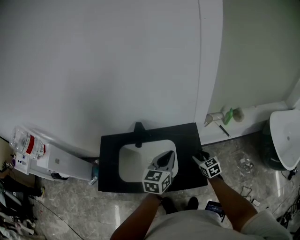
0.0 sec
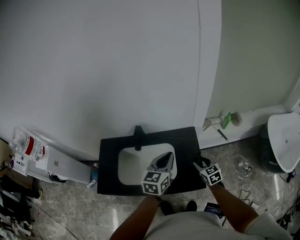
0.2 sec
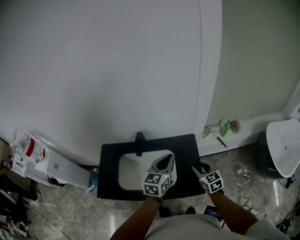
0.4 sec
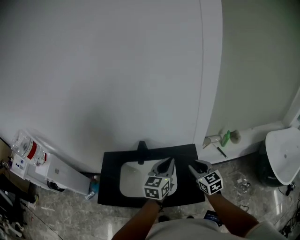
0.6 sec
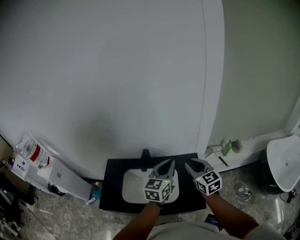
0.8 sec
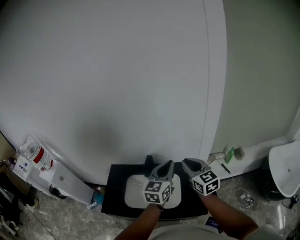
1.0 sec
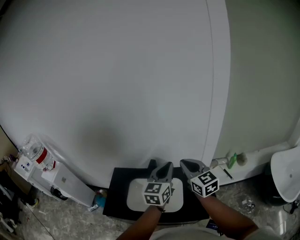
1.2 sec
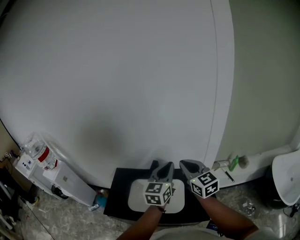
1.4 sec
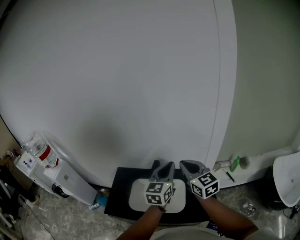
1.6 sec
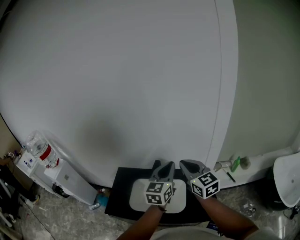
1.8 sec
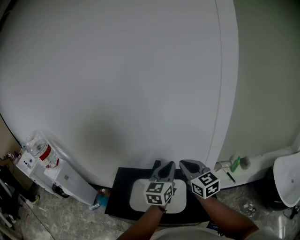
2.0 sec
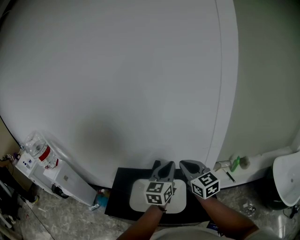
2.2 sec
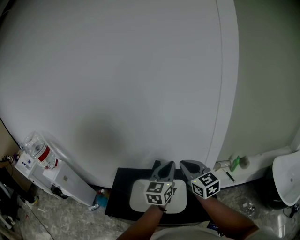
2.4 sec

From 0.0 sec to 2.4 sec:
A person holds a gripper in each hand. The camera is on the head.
From 0.0 sec to 1.2 sec: The left gripper travels upward by roughly 15 cm; the right gripper moves upward, approximately 35 cm, changes its angle by roughly 30 degrees, and closes its fingers.
From 1.2 sec to 2.4 sec: The grippers stay close to where they were, moving slightly.

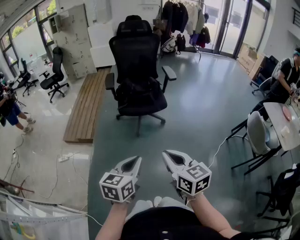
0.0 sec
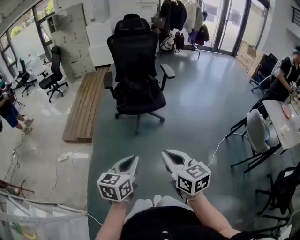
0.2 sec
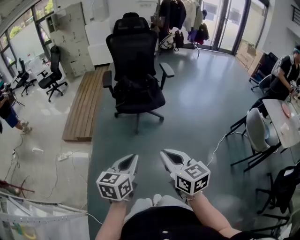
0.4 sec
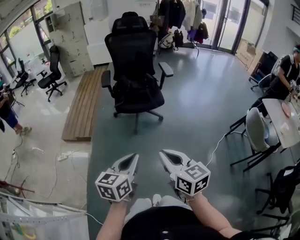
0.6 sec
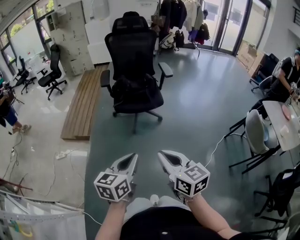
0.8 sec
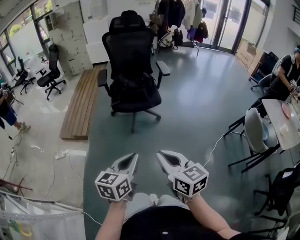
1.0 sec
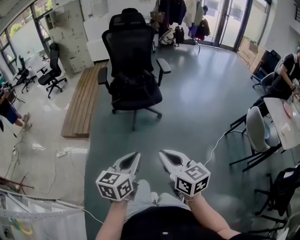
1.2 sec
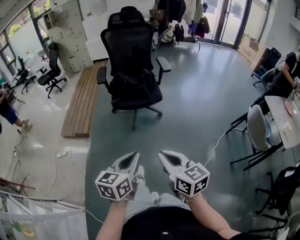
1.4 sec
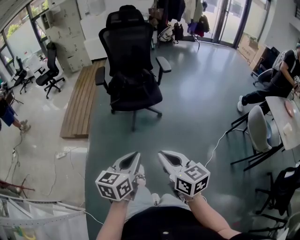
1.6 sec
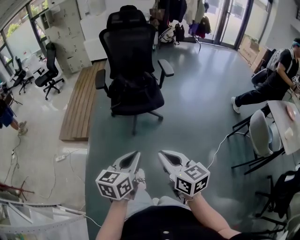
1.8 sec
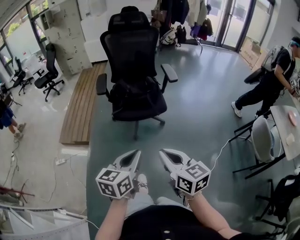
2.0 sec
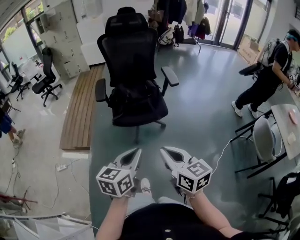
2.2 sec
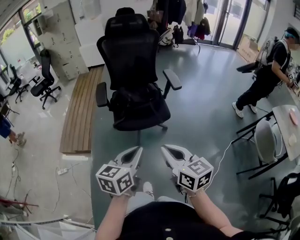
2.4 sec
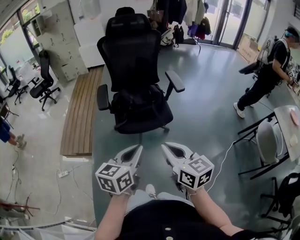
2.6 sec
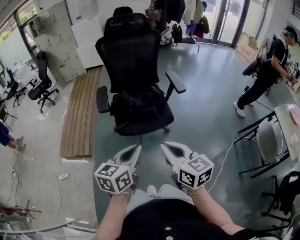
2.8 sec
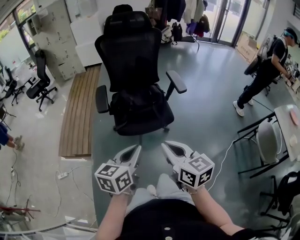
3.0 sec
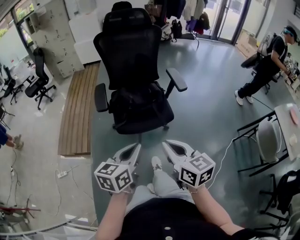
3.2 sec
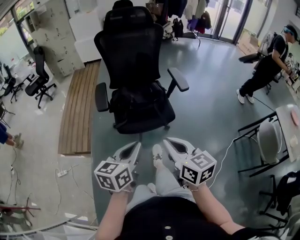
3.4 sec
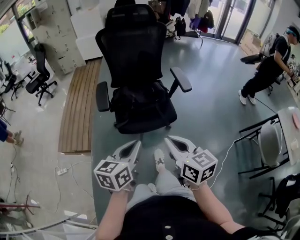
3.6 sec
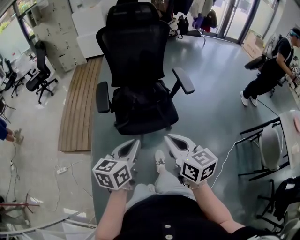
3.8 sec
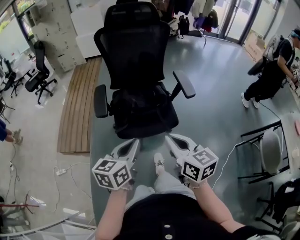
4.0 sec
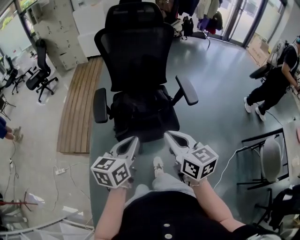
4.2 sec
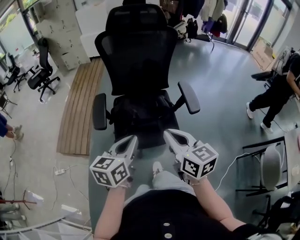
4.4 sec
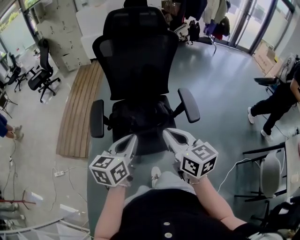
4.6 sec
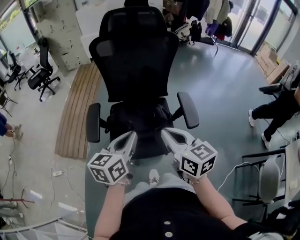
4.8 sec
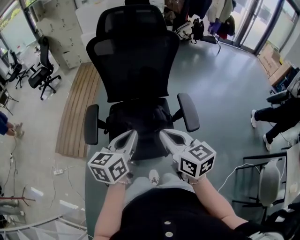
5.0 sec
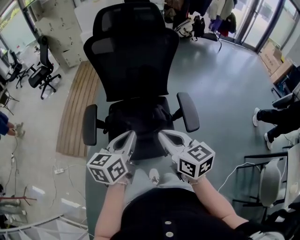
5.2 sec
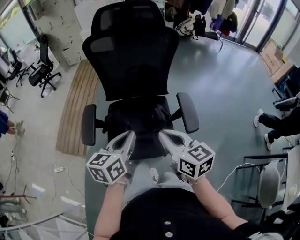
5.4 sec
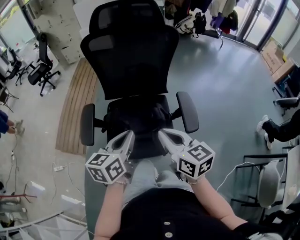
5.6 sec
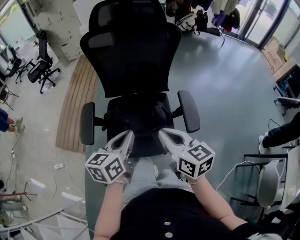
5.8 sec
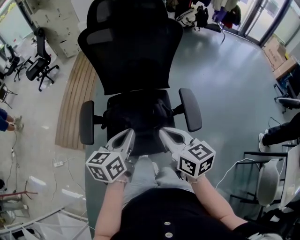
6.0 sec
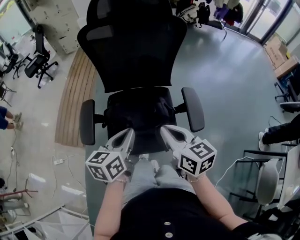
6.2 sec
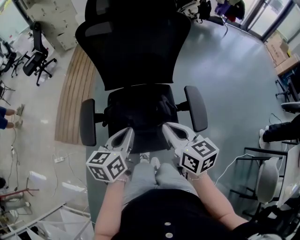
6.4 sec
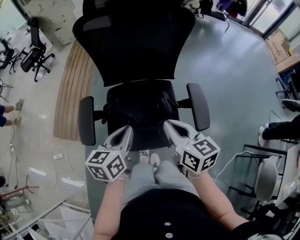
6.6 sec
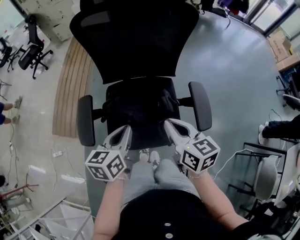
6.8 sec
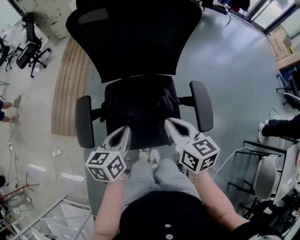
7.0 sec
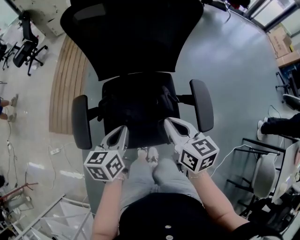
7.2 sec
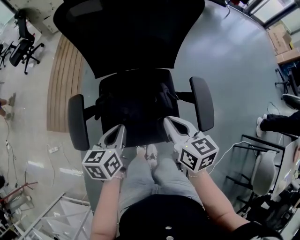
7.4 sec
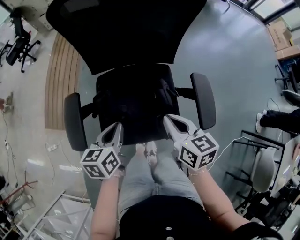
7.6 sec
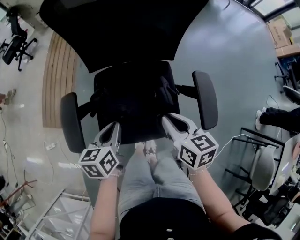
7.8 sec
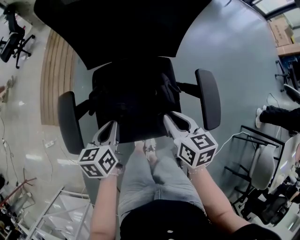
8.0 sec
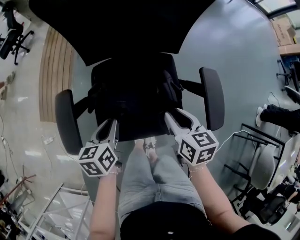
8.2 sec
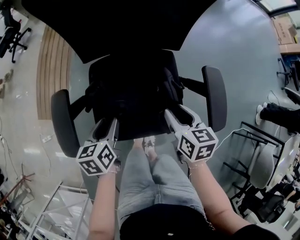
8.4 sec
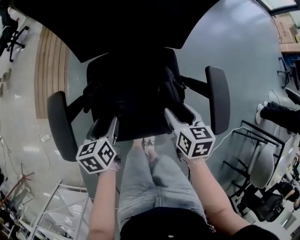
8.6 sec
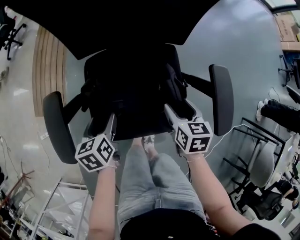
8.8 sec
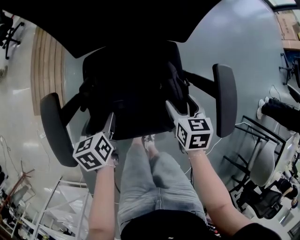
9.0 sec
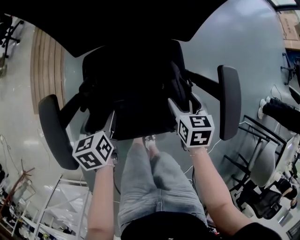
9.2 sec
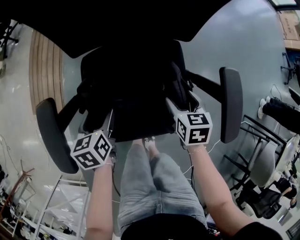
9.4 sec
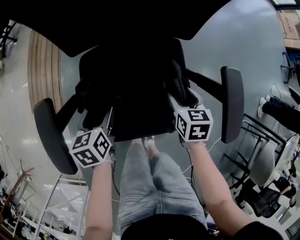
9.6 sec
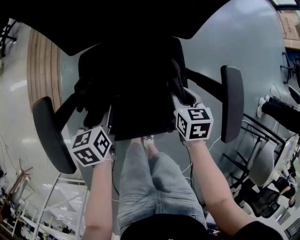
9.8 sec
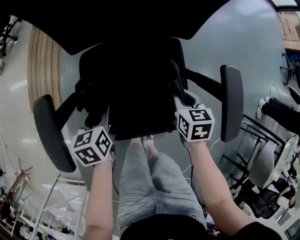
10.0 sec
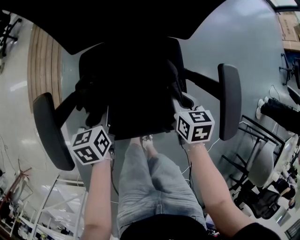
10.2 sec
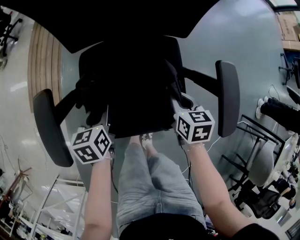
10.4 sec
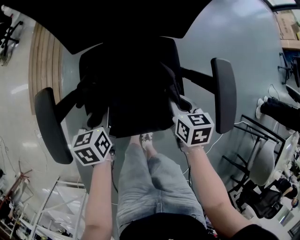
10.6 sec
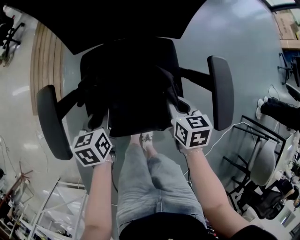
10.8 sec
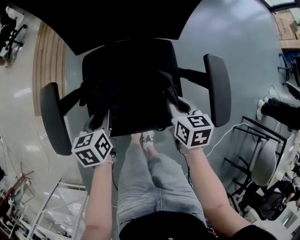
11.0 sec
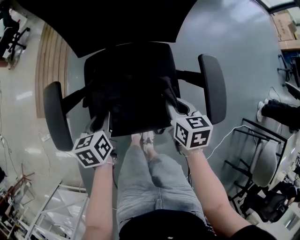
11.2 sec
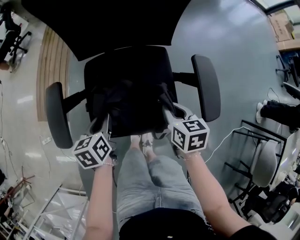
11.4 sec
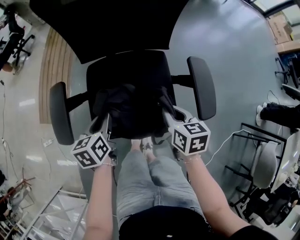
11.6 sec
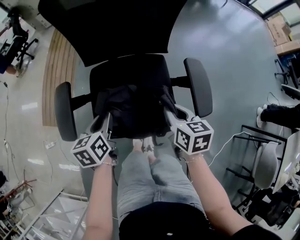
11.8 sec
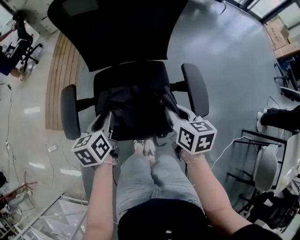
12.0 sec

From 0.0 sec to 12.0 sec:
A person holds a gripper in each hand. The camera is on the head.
From 0.0 sec to 1.6 sec: The left gripper moves to the right and forward, about 10 cm. Meanwhile the right gripper is displaced to the right by roughly 5 cm.
From 1.6 sec to 3.0 sec: The two grippers go some 30 cm forward.
From 3.0 sec to 4.4 sec: Both grippers move forward, about 25 cm.
From 4.4 sec to 6.0 sec: The left gripper travels forward and to the right by approximately 20 cm, while the right gripper travels forward by approximately 15 cm.
From 6.0 sec to 7.6 sec: The left gripper travels downward, forward and to the left by about 20 cm, while the right gripper is displaced downward and forward by about 15 cm.
From 7.6 sec to 9.0 sec: The two grippers go about 20 cm downward. The left gripper opens its fingers. Meanwhile the right gripper changes its angle by some 30 degrees, and opens up.
From 9.0 sec to 10.4 sec: The left gripper closes, while the right gripper closes.
From 10.4 sec to 12.0 sec: Both grippers move upward and backward, about 20 cm.

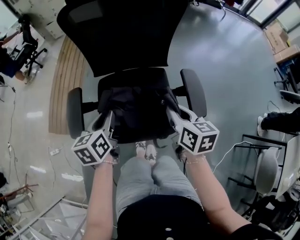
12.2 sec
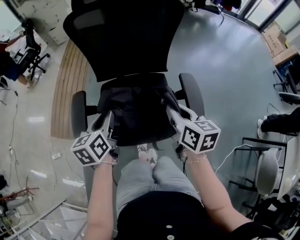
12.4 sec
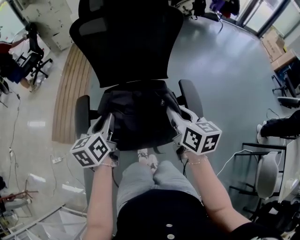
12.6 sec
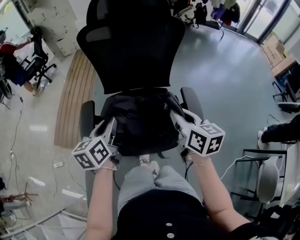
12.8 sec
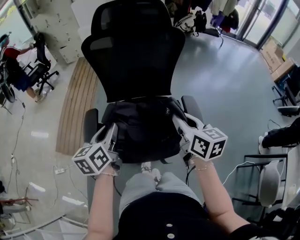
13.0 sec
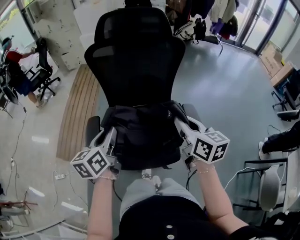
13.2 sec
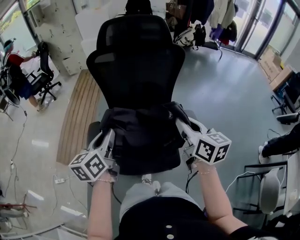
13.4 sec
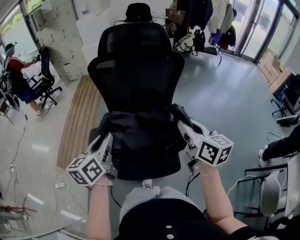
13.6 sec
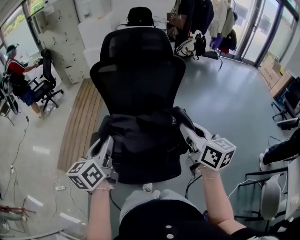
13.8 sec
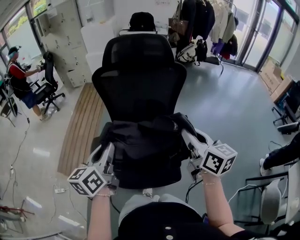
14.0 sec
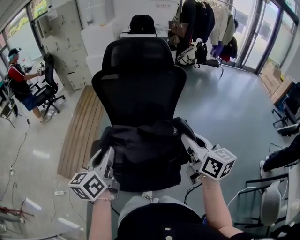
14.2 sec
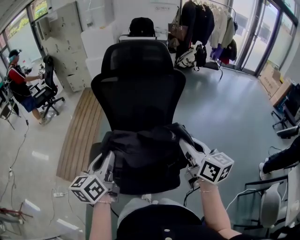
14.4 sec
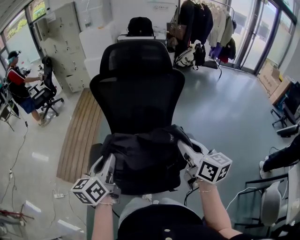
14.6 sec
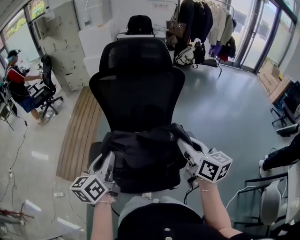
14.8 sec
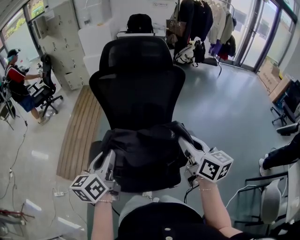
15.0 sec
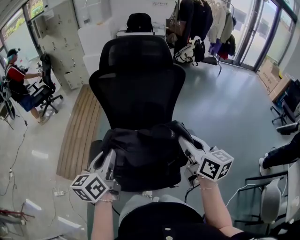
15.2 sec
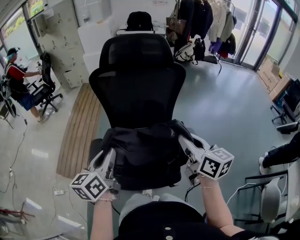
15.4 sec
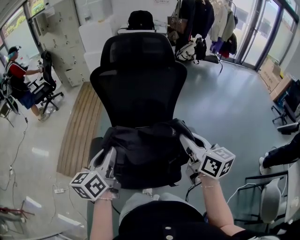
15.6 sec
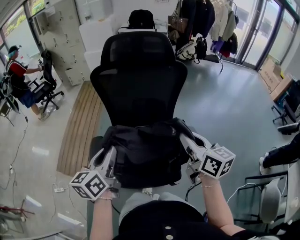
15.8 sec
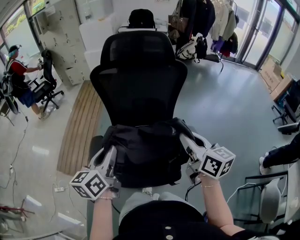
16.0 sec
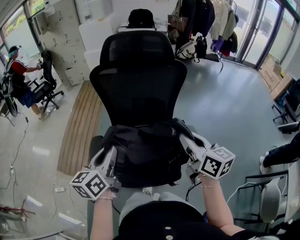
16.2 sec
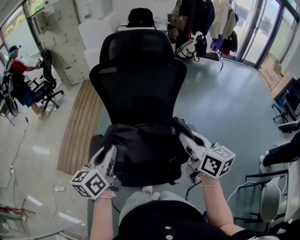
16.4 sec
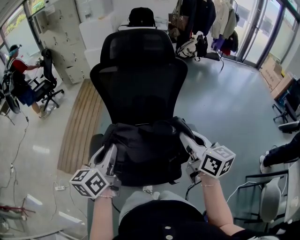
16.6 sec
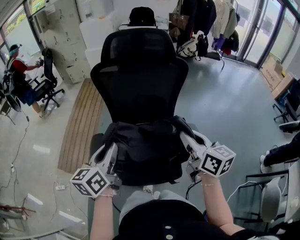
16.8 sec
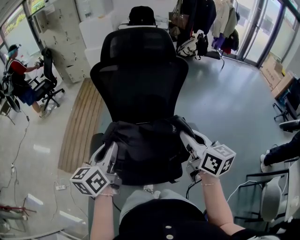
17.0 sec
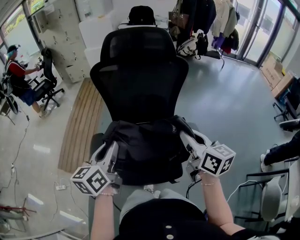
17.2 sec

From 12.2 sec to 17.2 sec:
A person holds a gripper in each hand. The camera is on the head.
From 12.2 sec to 13.8 sec: The grippers both shift upward by approximately 20 cm. The left gripper changes its angle by about 20 degrees. The right gripper changes its angle by about 20 degrees.
From 13.8 sec to 17.2 sec: The grippers make only small movements.

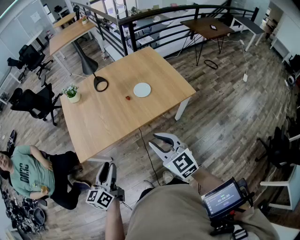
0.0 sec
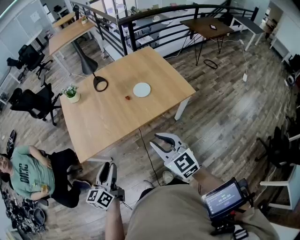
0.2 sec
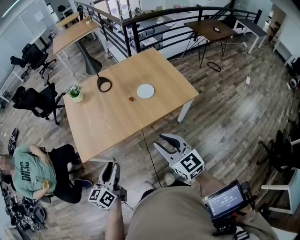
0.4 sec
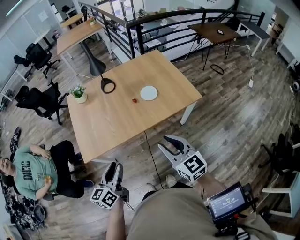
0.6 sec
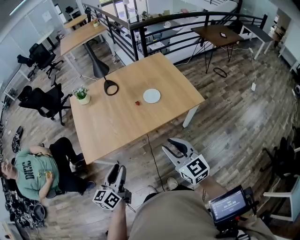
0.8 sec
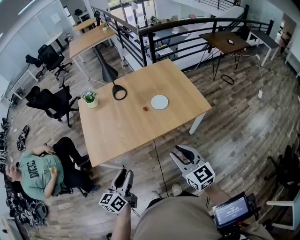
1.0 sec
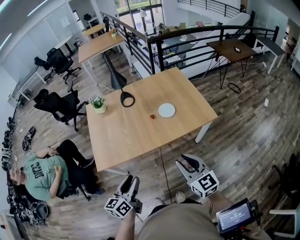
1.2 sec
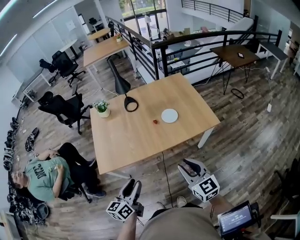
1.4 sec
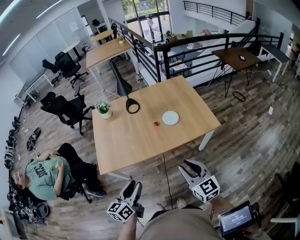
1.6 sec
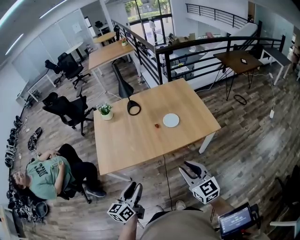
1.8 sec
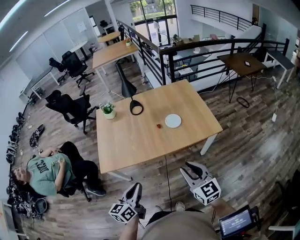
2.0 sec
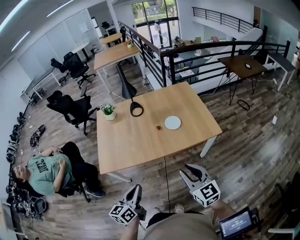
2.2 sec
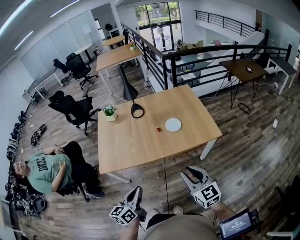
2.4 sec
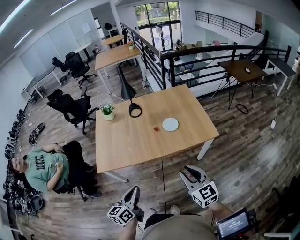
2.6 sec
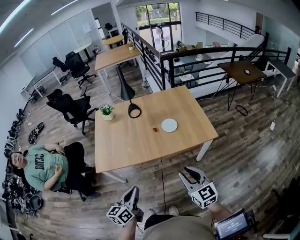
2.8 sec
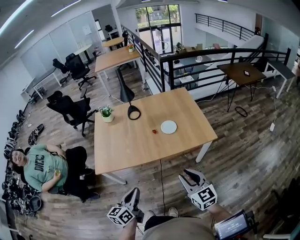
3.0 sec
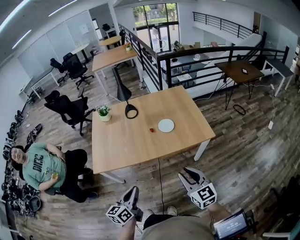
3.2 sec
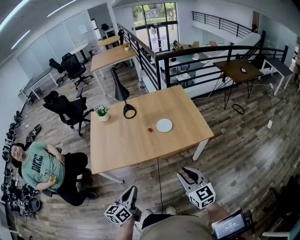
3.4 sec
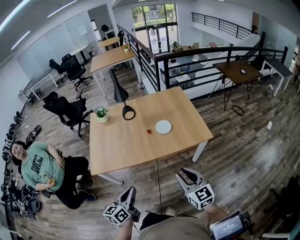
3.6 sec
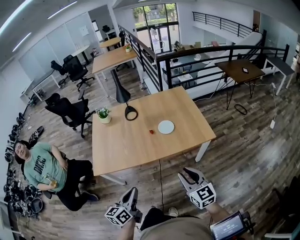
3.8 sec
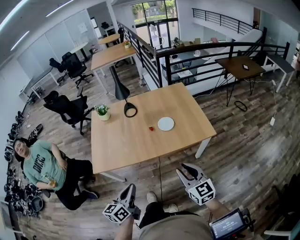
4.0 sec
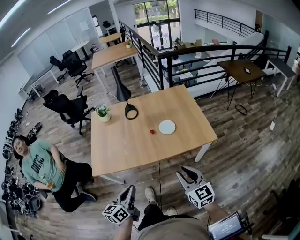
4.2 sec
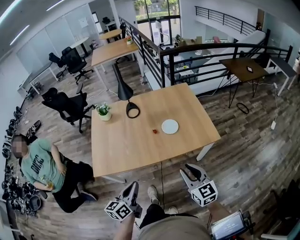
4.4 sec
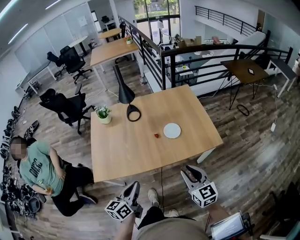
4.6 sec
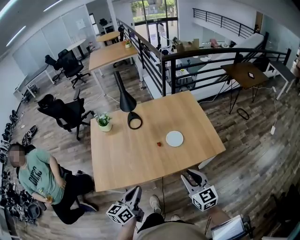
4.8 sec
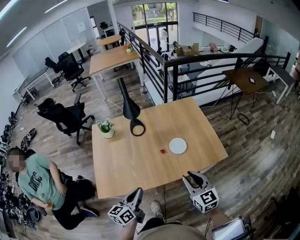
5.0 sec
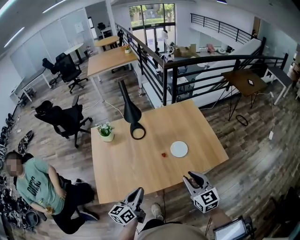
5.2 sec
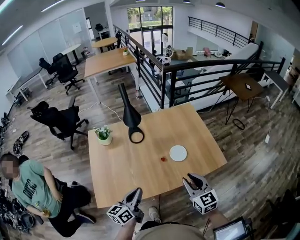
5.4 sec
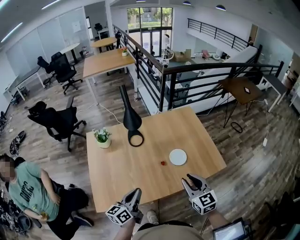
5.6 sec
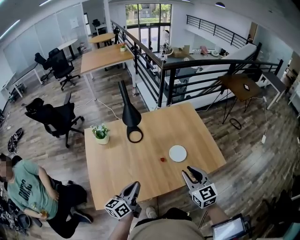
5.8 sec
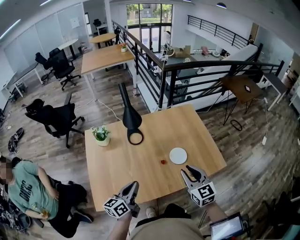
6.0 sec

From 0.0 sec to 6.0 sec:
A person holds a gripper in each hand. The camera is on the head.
From 0.0 sec to 1.6 sec: The right gripper shifts roughly 5 cm to the right.
From 1.6 sec to 3.0 sec: Both grippers move to the right, approximately 5 cm. The left gripper closes up.
From 3.0 sec to 4.4 sec: The two grippers go some 10 cm forward.
From 4.4 sec to 6.0 sec: The two grippers go roughly 30 cm forward and to the left.
